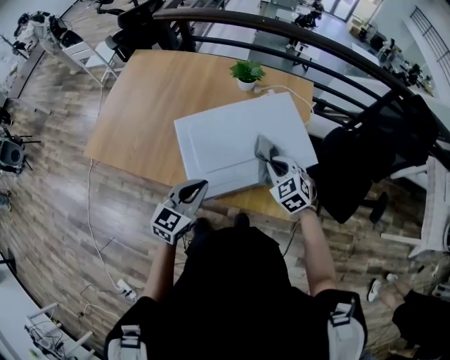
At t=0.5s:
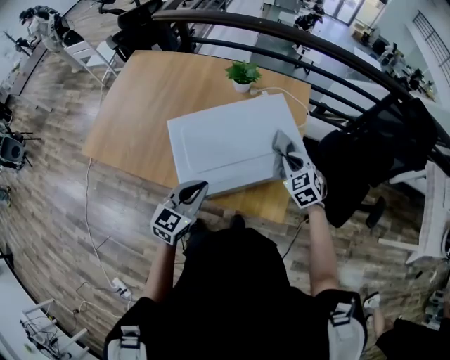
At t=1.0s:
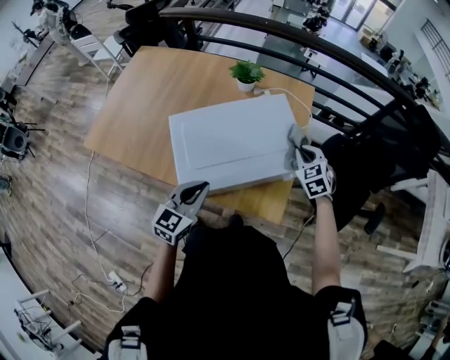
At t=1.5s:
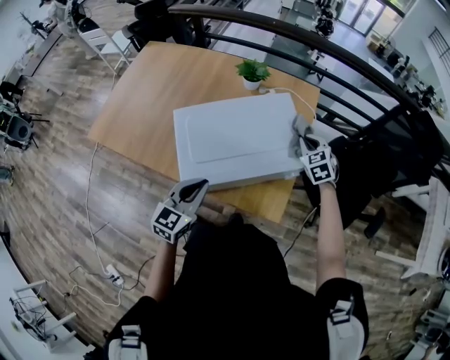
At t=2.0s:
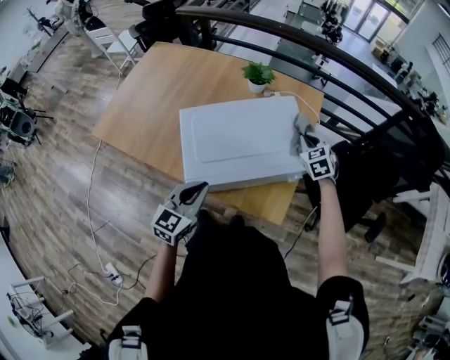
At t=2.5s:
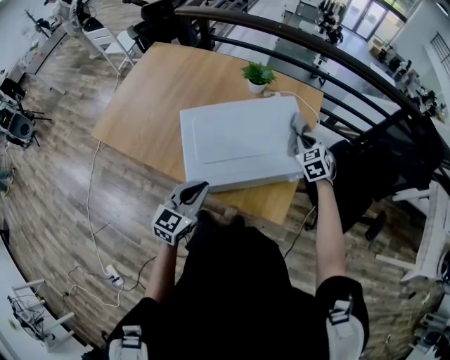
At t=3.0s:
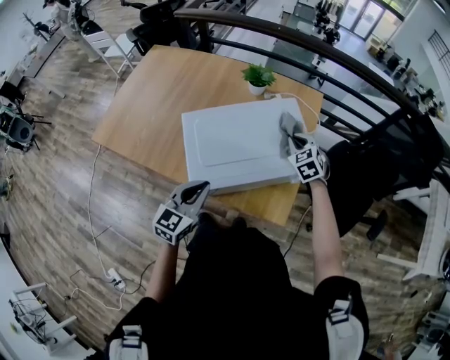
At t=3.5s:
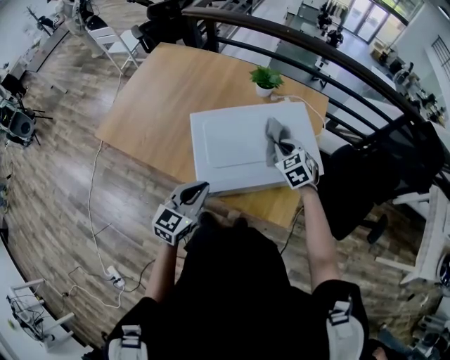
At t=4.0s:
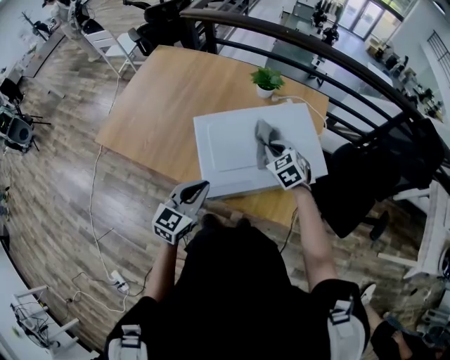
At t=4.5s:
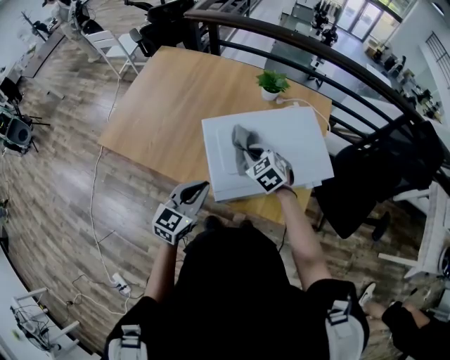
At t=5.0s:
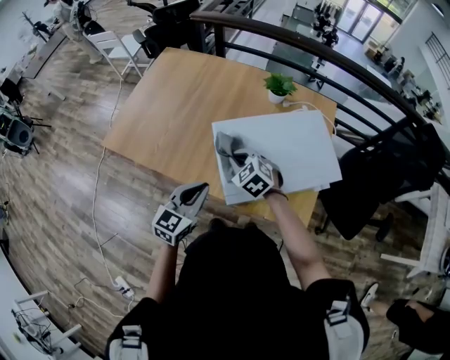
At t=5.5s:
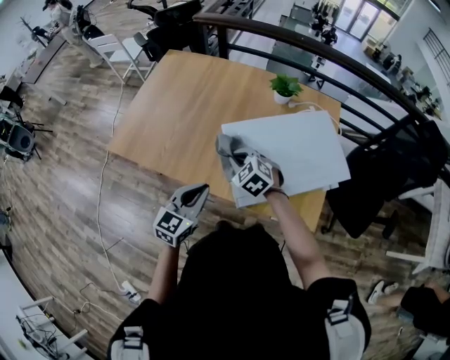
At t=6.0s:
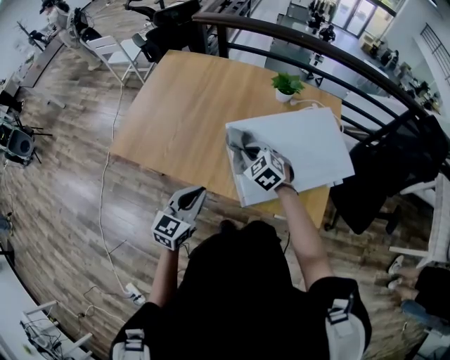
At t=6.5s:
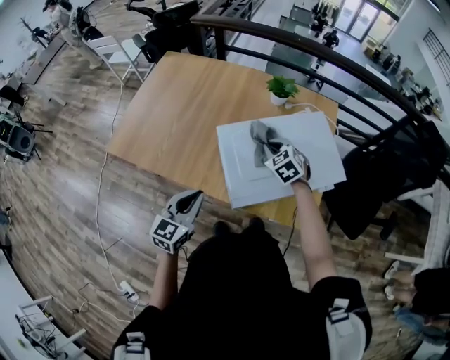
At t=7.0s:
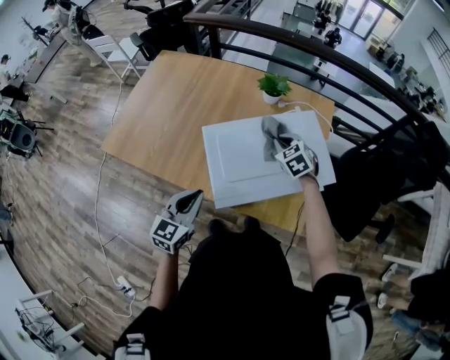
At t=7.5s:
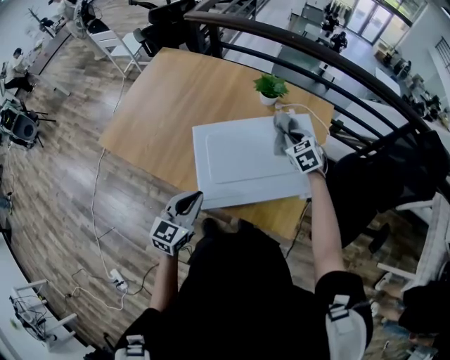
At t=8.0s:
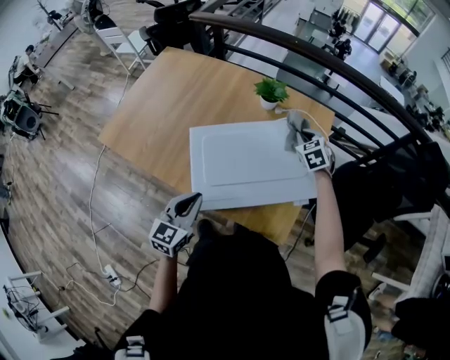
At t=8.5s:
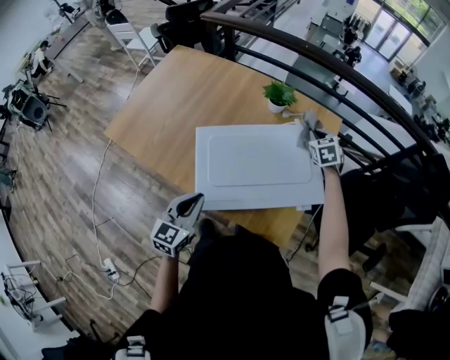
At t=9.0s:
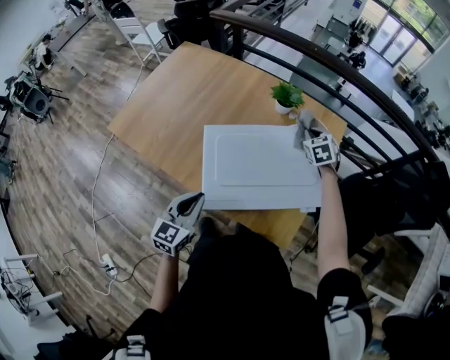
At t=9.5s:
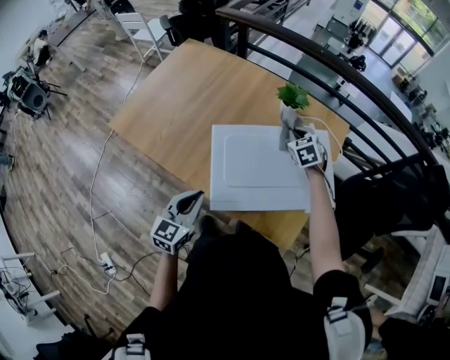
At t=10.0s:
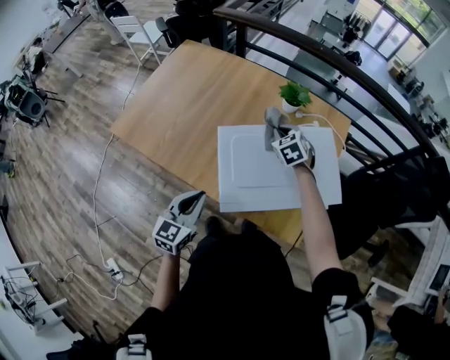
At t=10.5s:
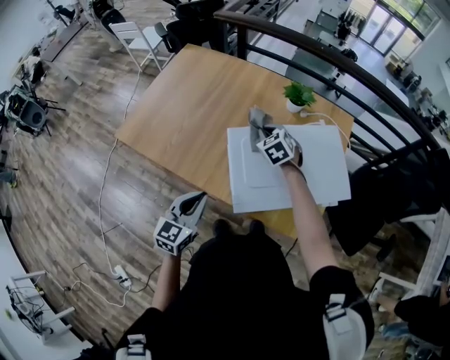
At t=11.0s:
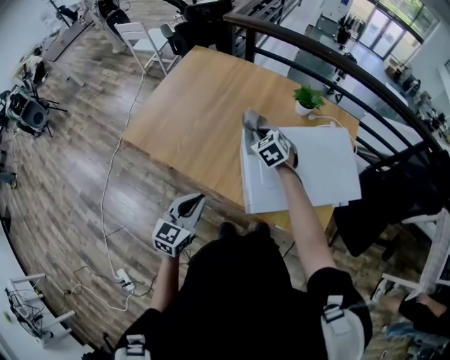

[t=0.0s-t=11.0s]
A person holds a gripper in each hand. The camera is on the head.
t=0.0s to t=2.0s: The right gripper travels forward and to the right by about 15 cm.
t=2.0s to t=3.5s: The right gripper shifts about 15 cm to the left.
t=3.5s to t=5.5s: The right gripper is displaced to the left by some 30 cm. The left gripper heads to the left, covering approximately 15 cm.
t=5.5s to t=7.5s: The left gripper moves to the right, about 10 cm, while the right gripper goes some 35 cm to the right and forward.
t=7.5s to t=9.0s: The right gripper heads forward, covering roughly 10 cm.
t=9.0s to t=11.0s: The right gripper moves to the left, about 35 cm. The left gripper shifts roughly 15 cm to the left.

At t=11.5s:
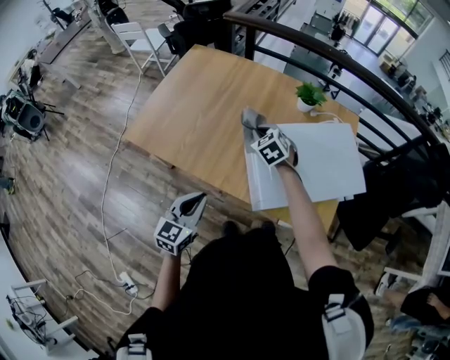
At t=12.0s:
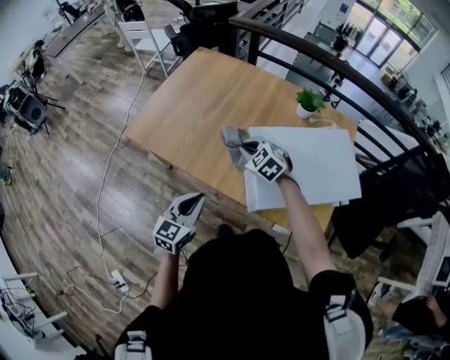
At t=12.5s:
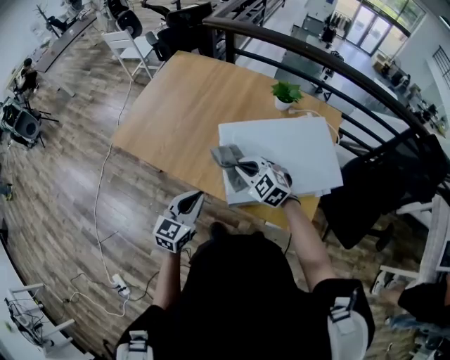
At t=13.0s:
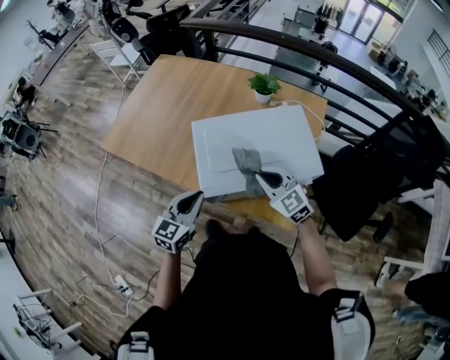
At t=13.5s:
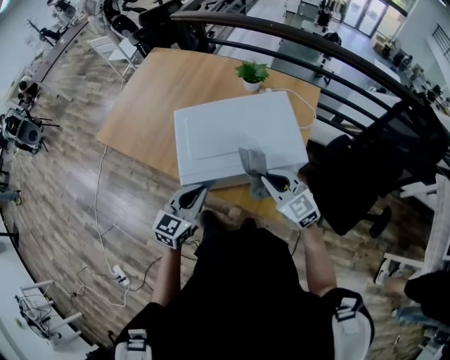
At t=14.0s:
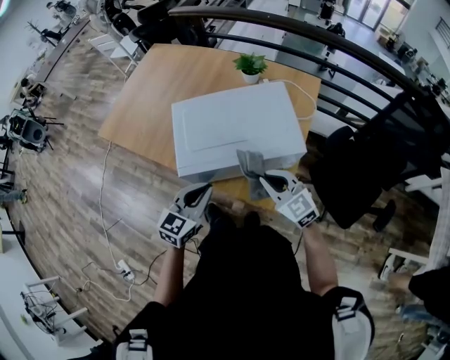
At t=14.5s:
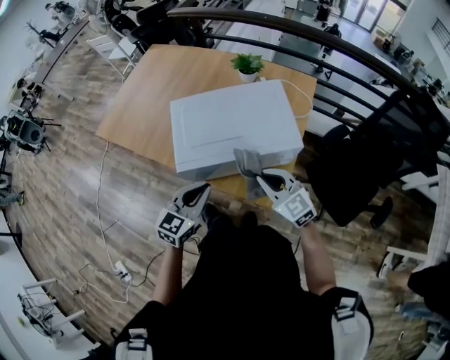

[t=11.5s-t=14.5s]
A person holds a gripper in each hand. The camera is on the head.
t=11.5s to t=13.0s: The left gripper shifts roughly 20 cm to the right. The right gripper is displaced backward and to the right by about 30 cm, and rotates about 30 degrees.
t=13.0s to t=14.5s: The left gripper goes about 15 cm to the right and backward; the right gripper moves backward and to the right, about 15 cm.

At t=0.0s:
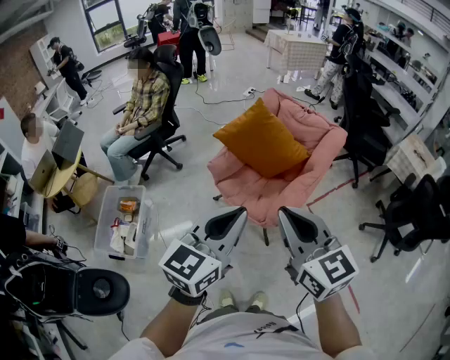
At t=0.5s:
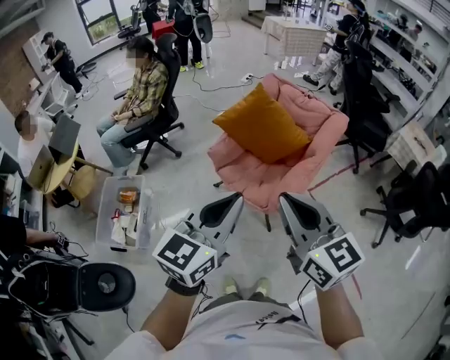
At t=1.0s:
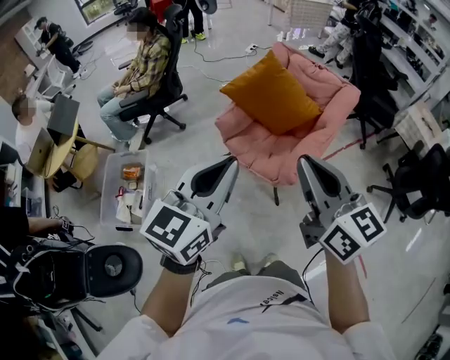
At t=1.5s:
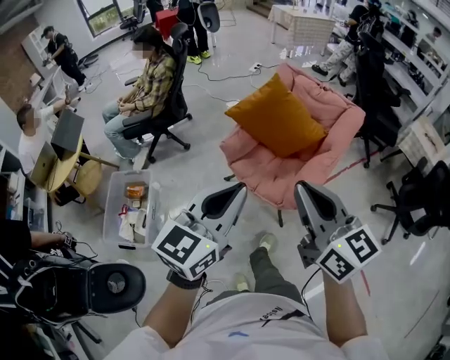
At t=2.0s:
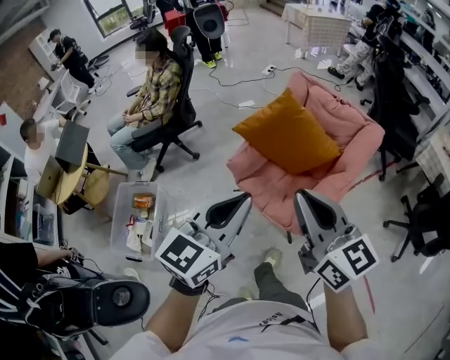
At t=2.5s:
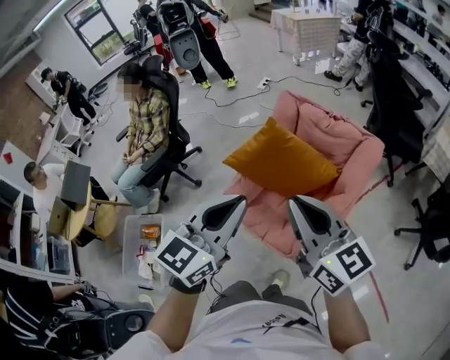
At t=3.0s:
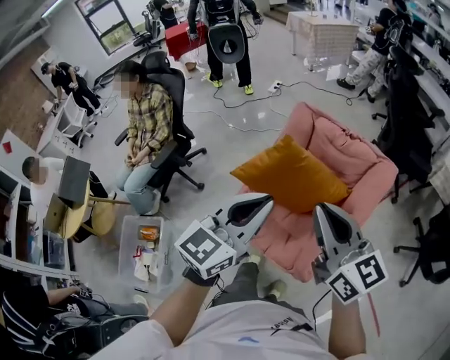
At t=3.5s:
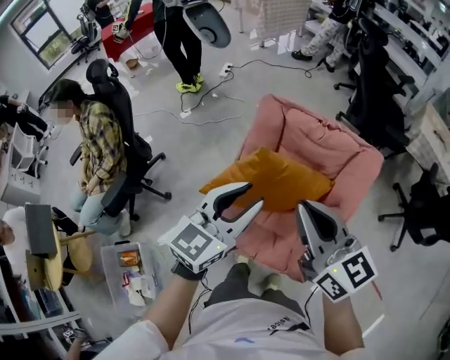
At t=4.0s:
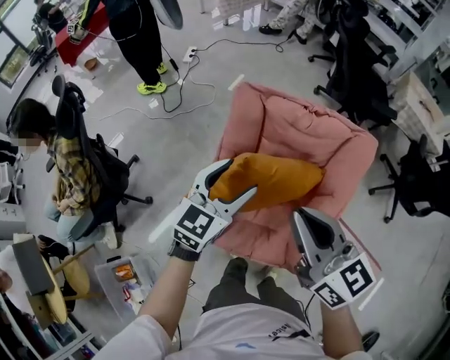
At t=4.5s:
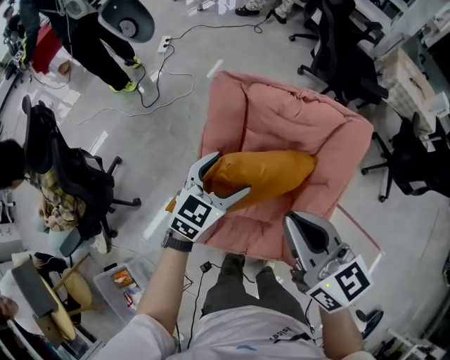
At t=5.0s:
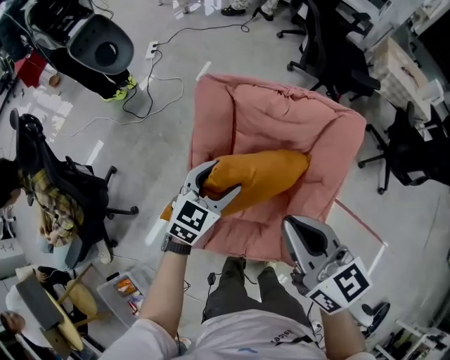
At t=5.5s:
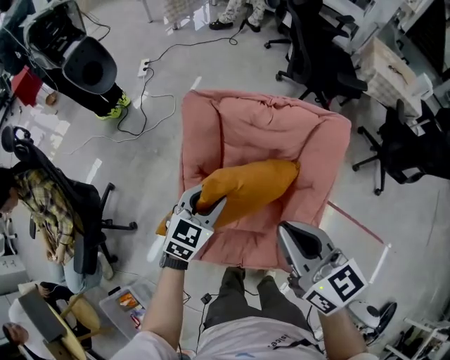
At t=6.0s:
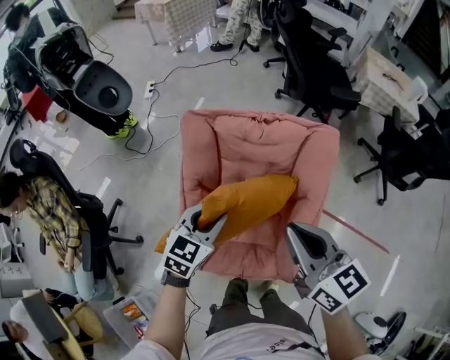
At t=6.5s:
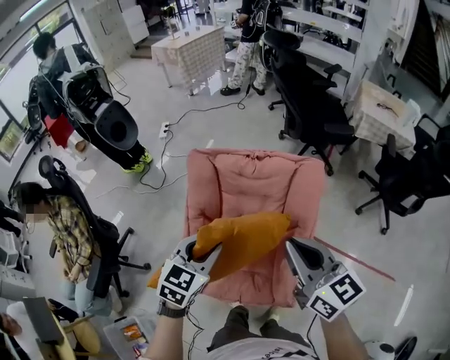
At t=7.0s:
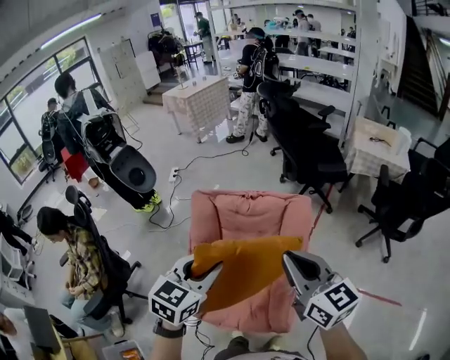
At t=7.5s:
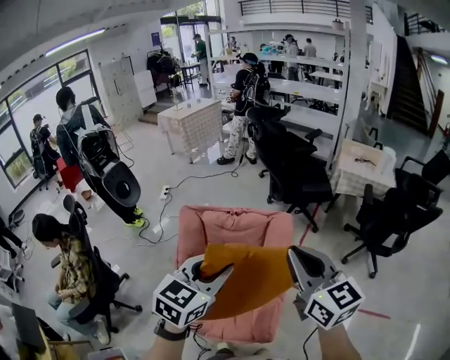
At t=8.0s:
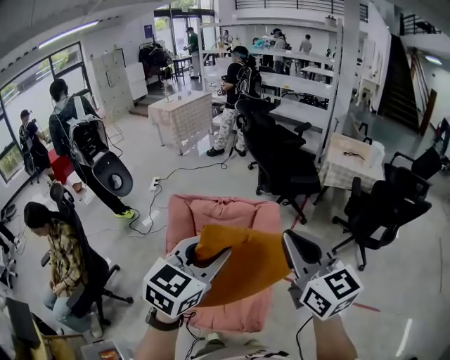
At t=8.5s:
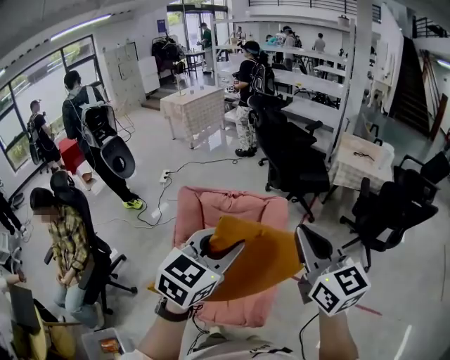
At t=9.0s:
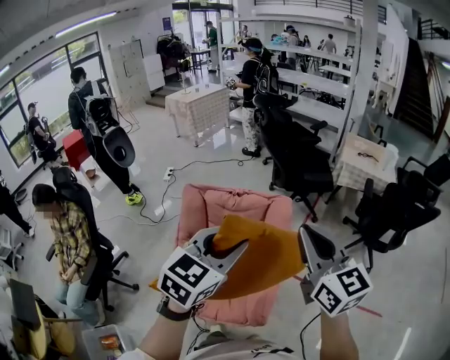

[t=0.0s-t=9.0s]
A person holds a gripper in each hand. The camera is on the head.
t=0.0s to t=2.0s: The grippers both shift forward by some 15 cm.
t=2.0s to t=4.5s: Both grippers are carried some 50 cm. The left gripper swivels roughly 40 degrees, and opens its fingers. Meanwhile the right gripper changes its angle by about 30 degrees.
t=4.5s to t=7.0s: The left gripper heads upward, backward and to the right, covering approximately 30 cm, and closes its fingers, while the right gripper is displaced to the right and upward by roughly 25 cm.
t=7.0s to t=9.0s: Both grippers travel together to the right, upward and backward, about 15 cm.

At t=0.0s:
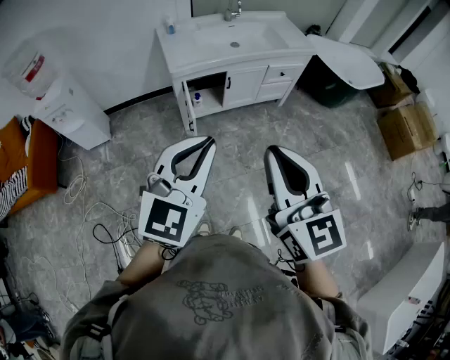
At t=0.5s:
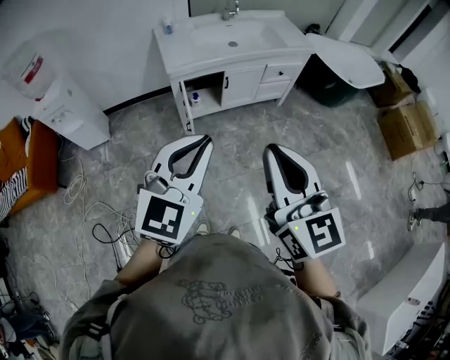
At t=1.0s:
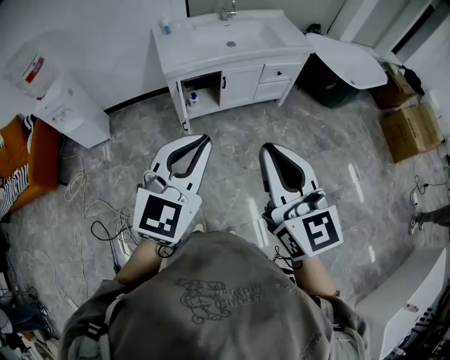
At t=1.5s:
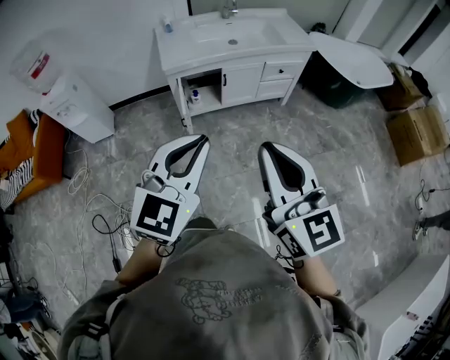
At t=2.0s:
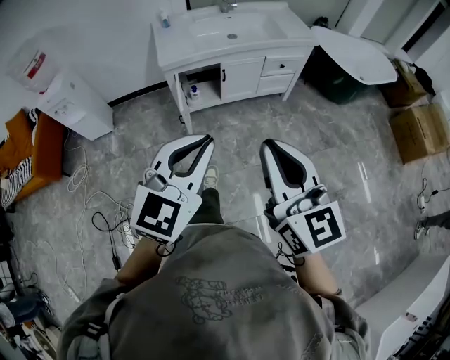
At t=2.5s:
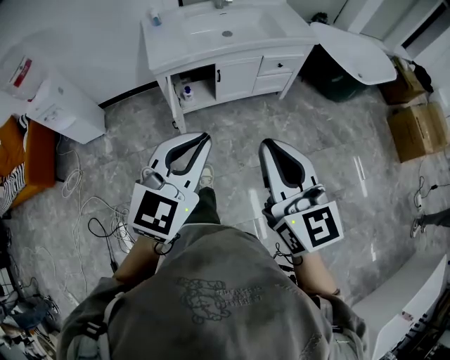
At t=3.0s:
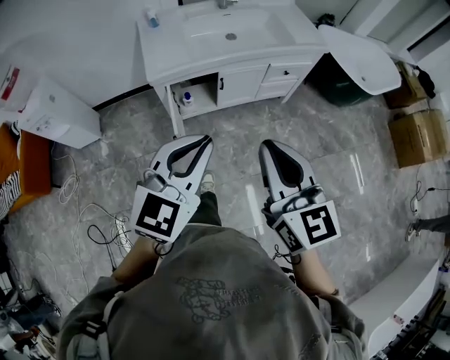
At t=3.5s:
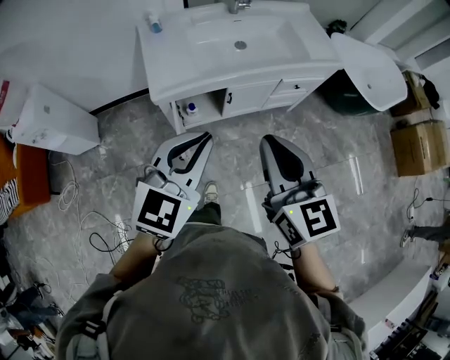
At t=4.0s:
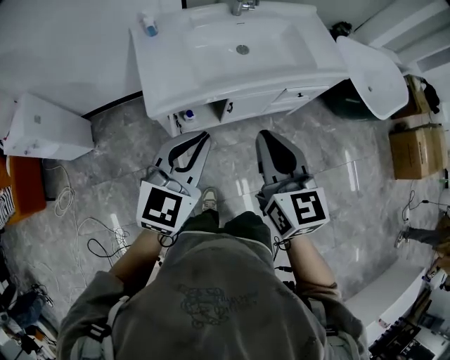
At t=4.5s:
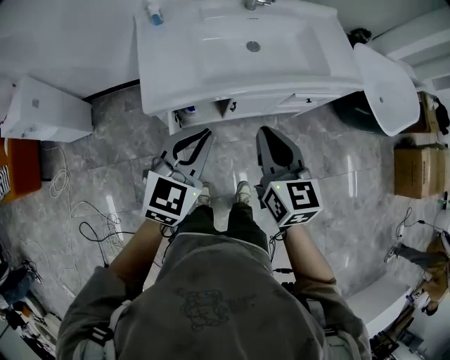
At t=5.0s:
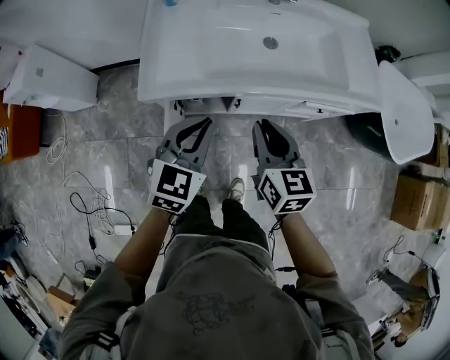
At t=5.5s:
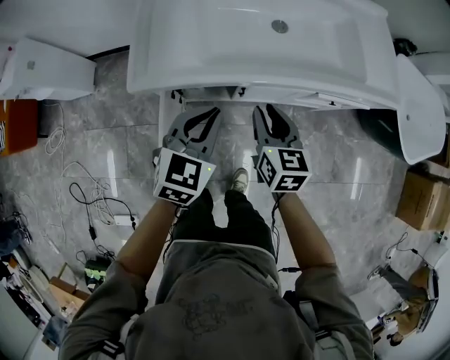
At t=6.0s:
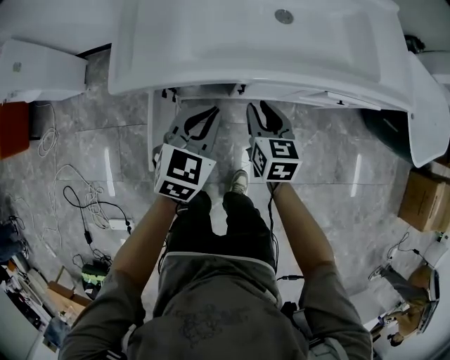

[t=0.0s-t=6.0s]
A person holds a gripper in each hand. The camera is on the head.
t=0.0s to t=2.0s: Both grippers travel together to the right, roughly 10 cm.
t=2.0s to t=4.0s: Both grippers are carried forward, roughly 50 cm.
t=4.0s to t=6.0s: Both grippers move downward and forward, roughly 35 cm. The left gripper swivels roughly 30 degrees. The right gripper turns by about 20 degrees.
